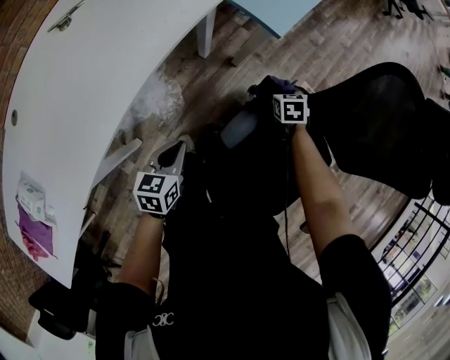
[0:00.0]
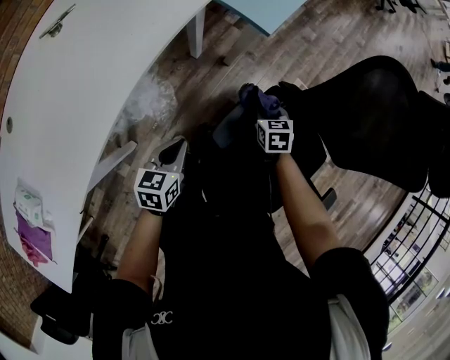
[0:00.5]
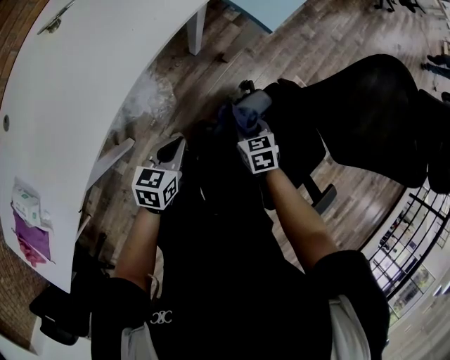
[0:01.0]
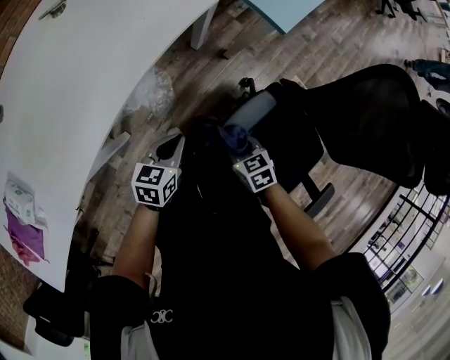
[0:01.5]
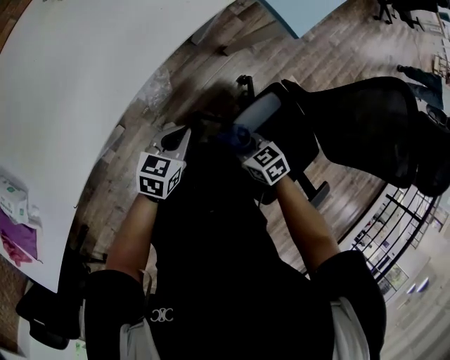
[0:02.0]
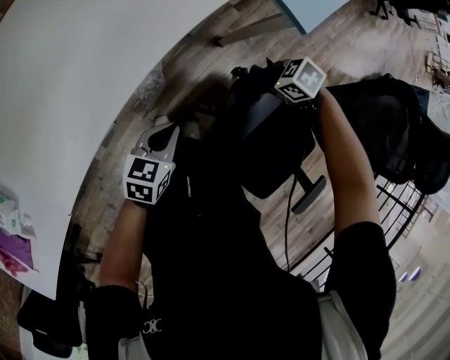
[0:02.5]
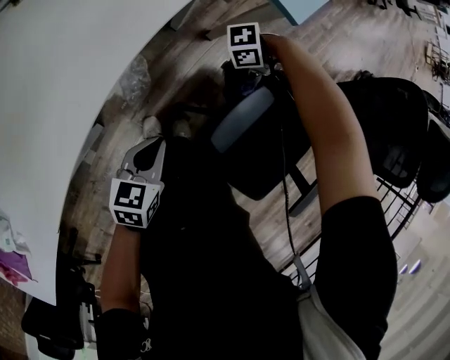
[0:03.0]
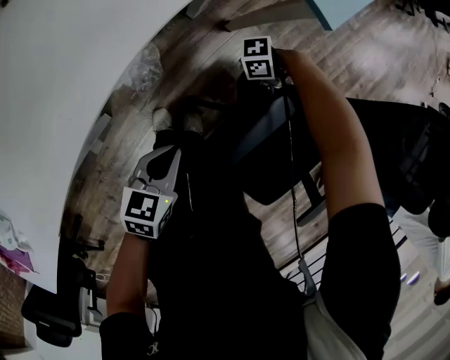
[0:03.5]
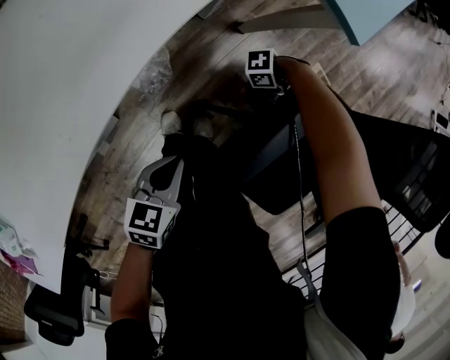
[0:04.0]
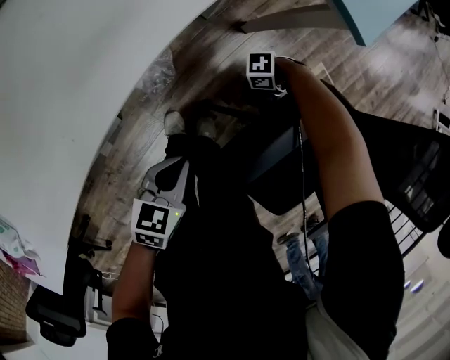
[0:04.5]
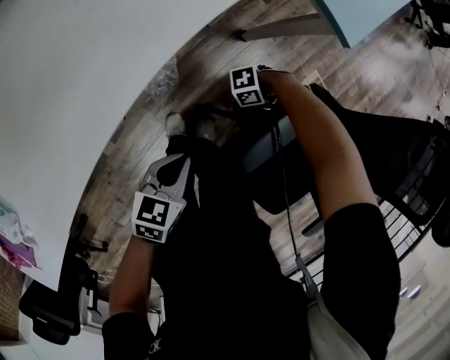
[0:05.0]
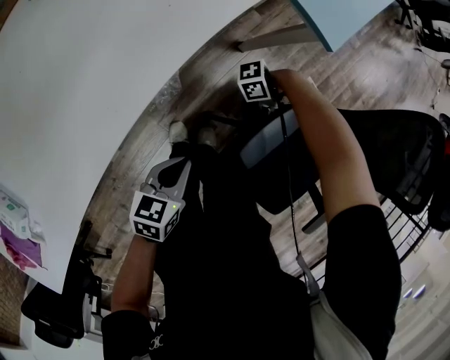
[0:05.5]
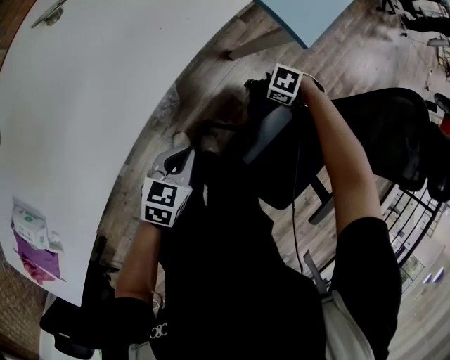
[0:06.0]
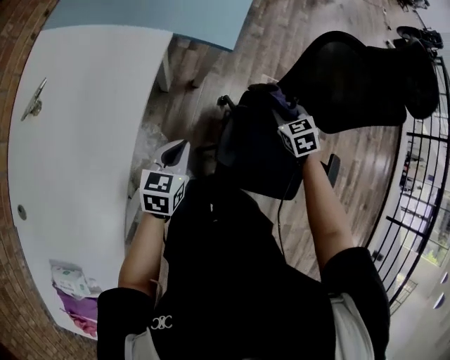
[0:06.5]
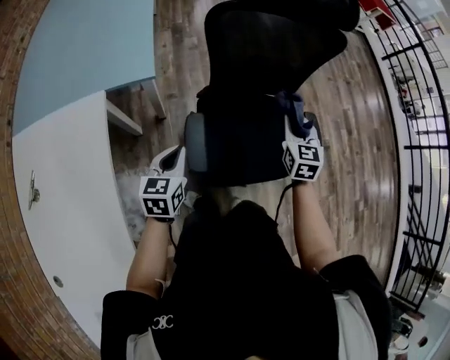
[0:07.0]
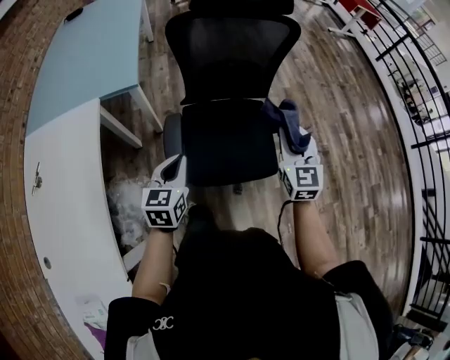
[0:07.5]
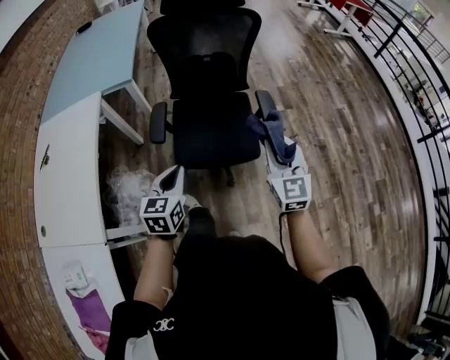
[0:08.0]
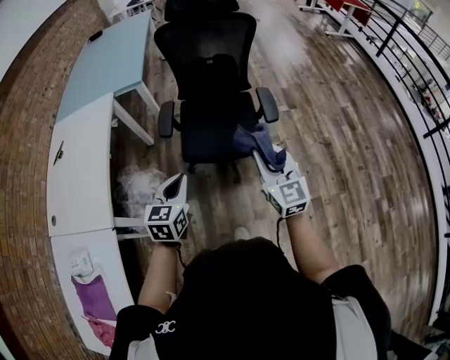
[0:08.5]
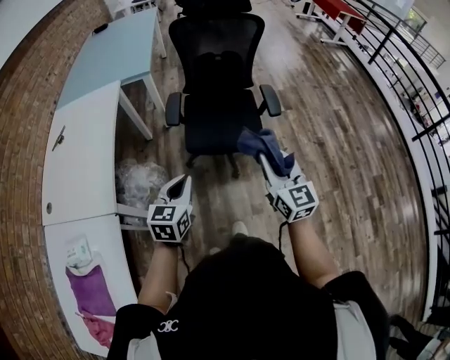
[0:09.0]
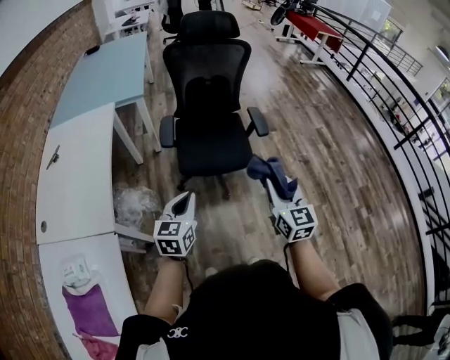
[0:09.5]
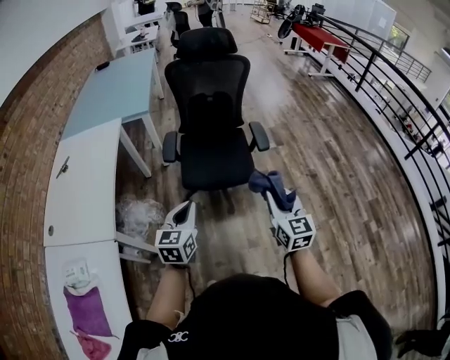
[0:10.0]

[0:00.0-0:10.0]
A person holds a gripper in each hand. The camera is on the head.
0:00.0 to 0:02.0: The right gripper changes place by about 30 cm, and rotates approximately 40 degrees.
0:02.0 to 0:04.0: The right gripper heads downward, covering about 25 cm, and changes its angle by about 80 degrees; the left gripper moves downward, roughly 10 cm.
0:04.0 to 0:06.0: The right gripper goes about 15 cm upward, and angles its fingers downward, by some 30 degrees, while the left gripper moves upward, roughly 10 cm.
0:06.0 to 0:08.0: The right gripper moves some 70 cm, and angles its fingers upward, by approximately 60 degrees. Meanwhile the left gripper changes place by about 35 cm, and swivels some 30 degrees.
0:08.0 to 0:10.0: The two grippers go roughly 20 cm backward.

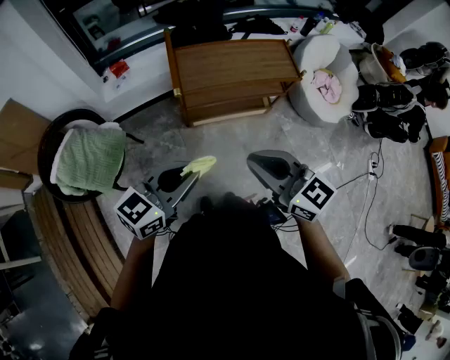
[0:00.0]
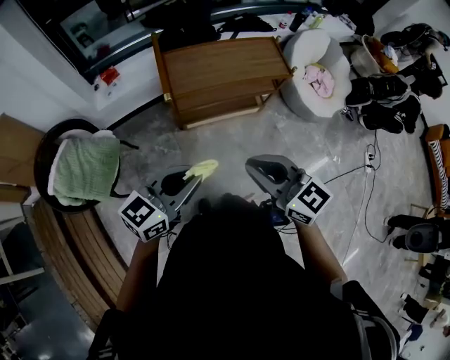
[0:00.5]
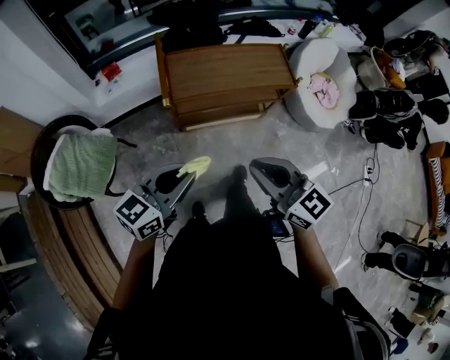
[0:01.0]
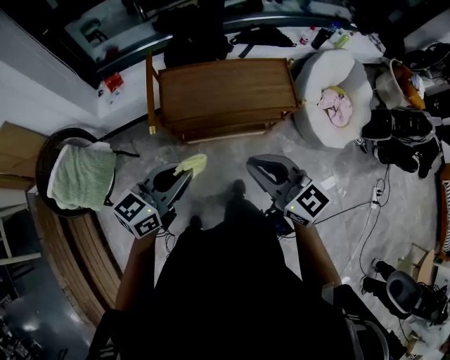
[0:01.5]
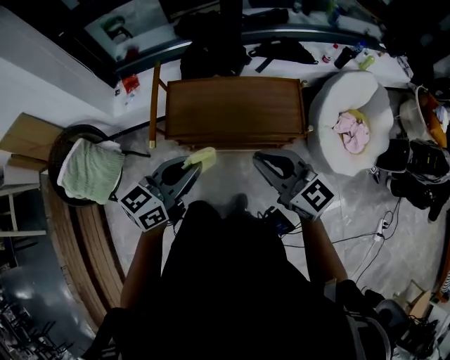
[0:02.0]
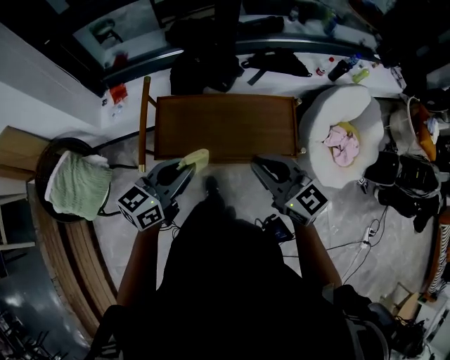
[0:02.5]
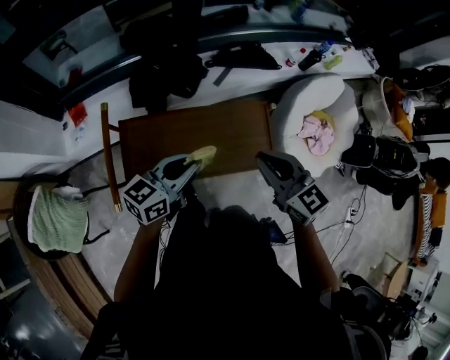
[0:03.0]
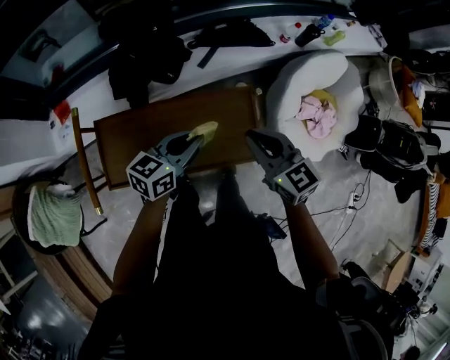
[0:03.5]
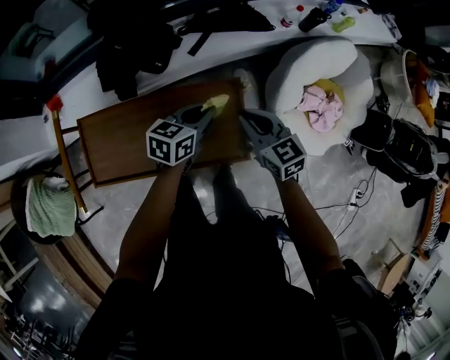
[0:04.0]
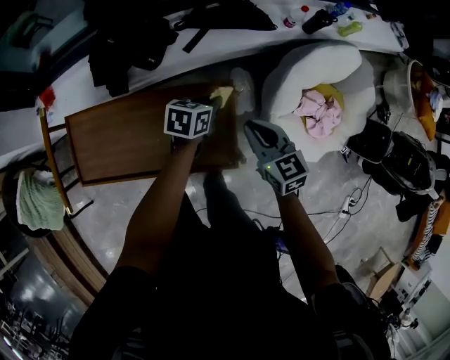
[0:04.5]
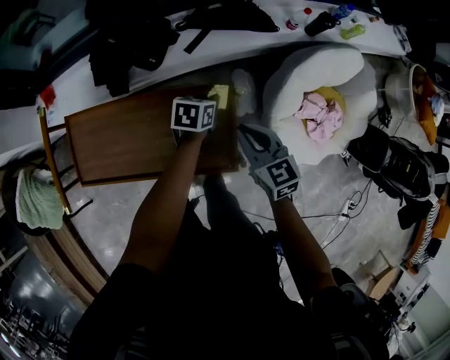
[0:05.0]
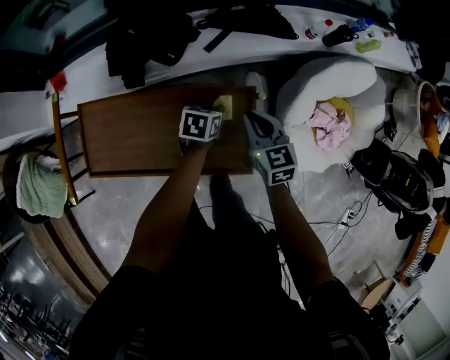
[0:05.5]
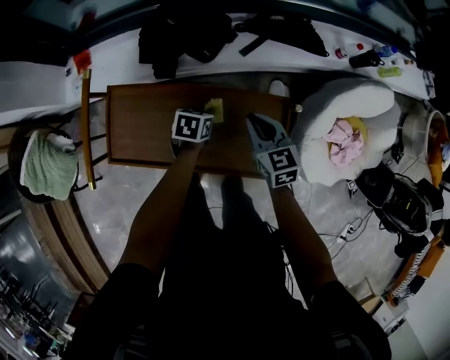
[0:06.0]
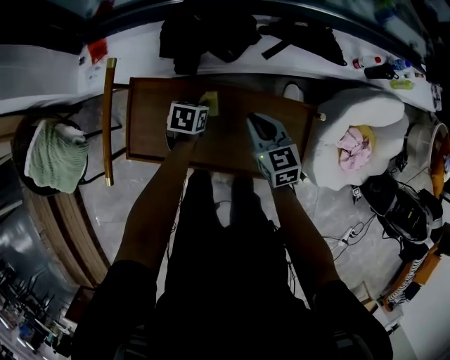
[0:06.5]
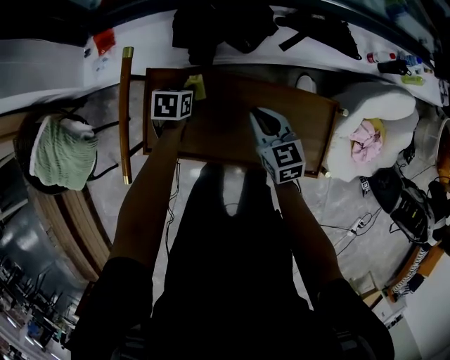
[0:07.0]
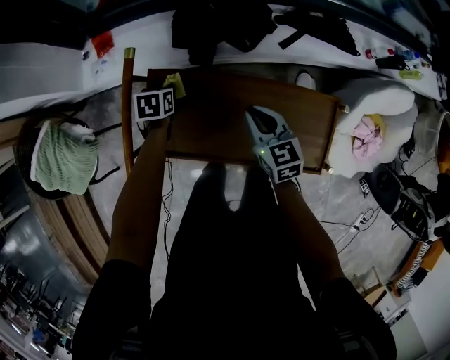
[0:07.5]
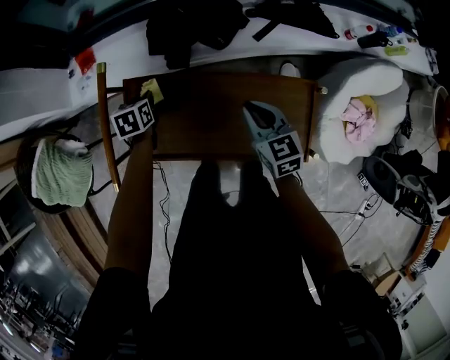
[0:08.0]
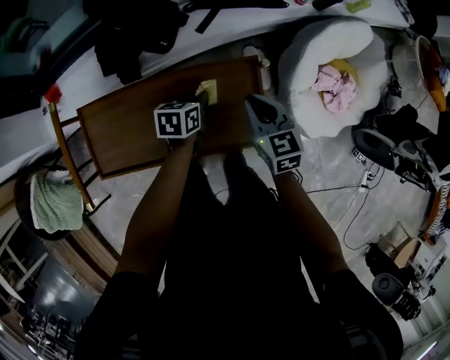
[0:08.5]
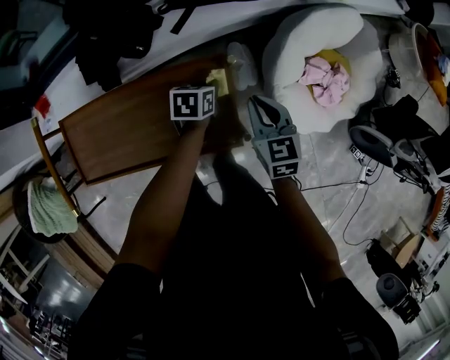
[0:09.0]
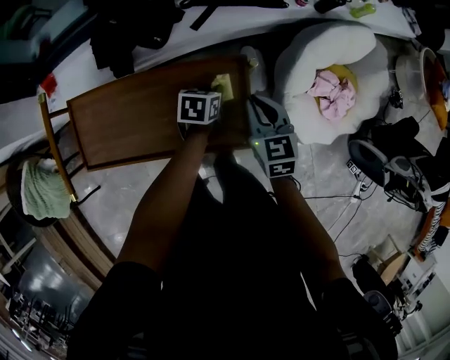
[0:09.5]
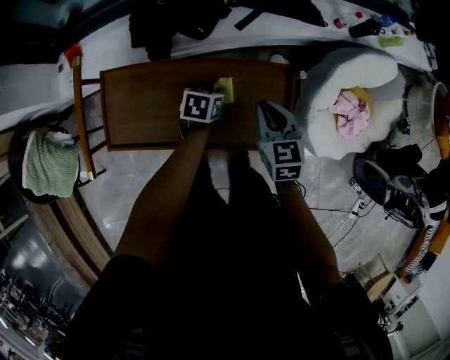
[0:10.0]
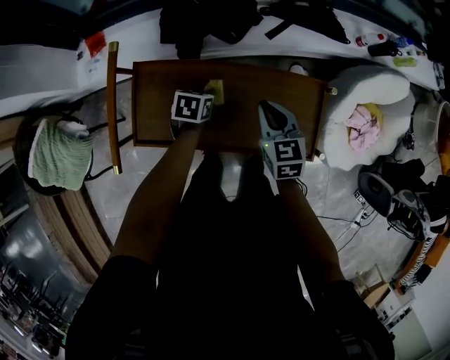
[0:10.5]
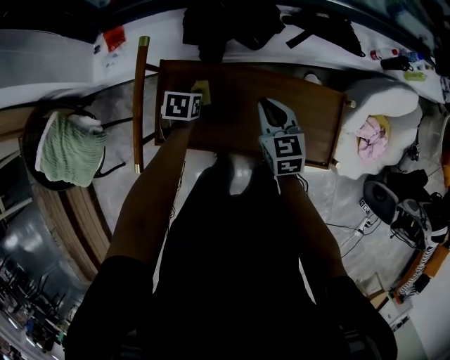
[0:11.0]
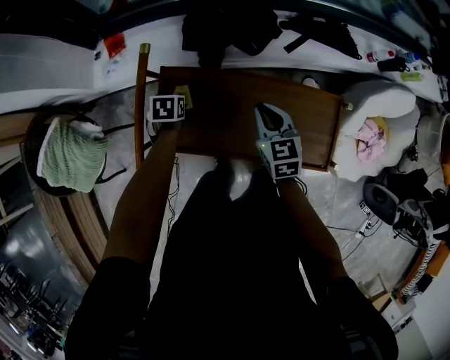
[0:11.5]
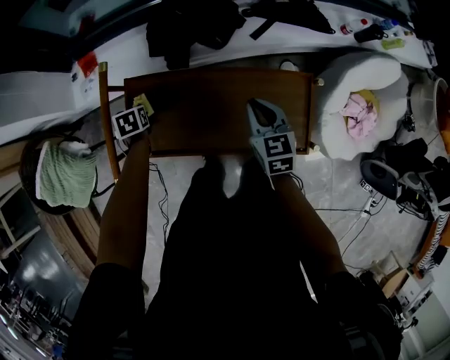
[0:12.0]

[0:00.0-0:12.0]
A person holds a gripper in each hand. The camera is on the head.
0:00.0 to 0:02.0: Both grippers travel together forward and to the right, some 35 cm.
0:02.0 to 0:04.0: The two grippers go some 50 cm forward, to the right and downward. The right gripper rotates about 30 degrees. The left gripper rotates roughly 20 degrees.
0:04.0 to 0:06.0: The left gripper moves downward and to the left, some 20 cm, and swivels about 30 degrees. Meanwhile the right gripper heads to the left and downward, covering about 15 cm.
0:06.0 to 0:08.0: The left gripper travels to the left by some 30 cm, and swivels about 20 degrees. Meanwhile the right gripper is displaced to the left by roughly 10 cm.
0:08.0 to 0:10.0: The left gripper swivels some 30 degrees.
0:10.0 to 0:12.0: The left gripper shifts by approximately 35 cm, and turns by about 30 degrees.

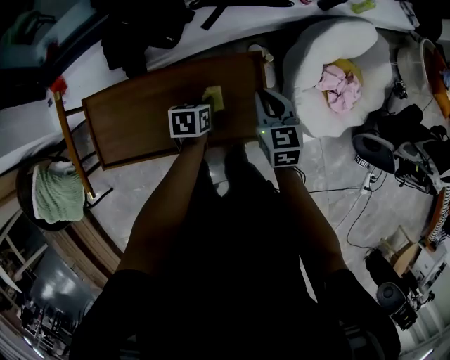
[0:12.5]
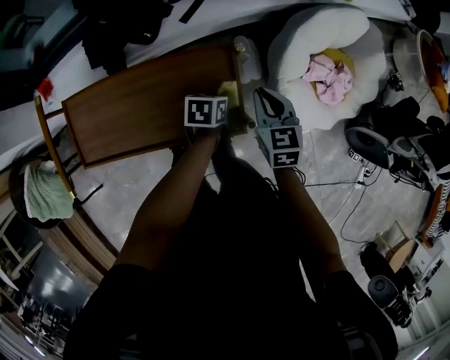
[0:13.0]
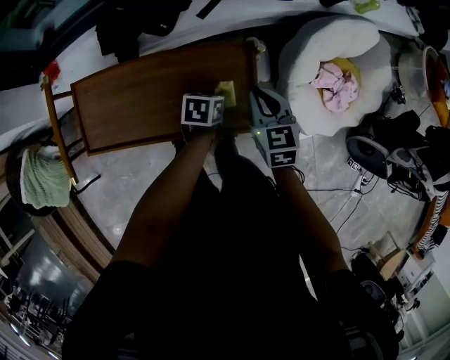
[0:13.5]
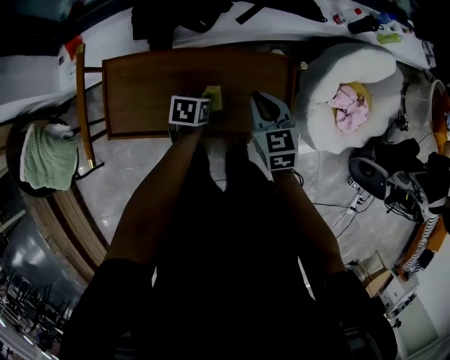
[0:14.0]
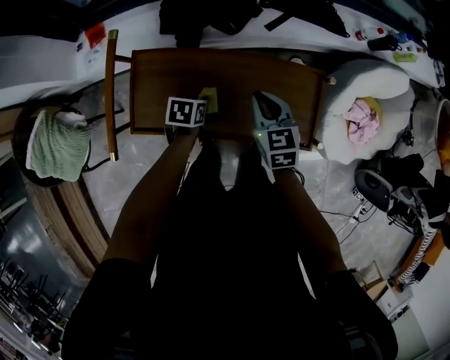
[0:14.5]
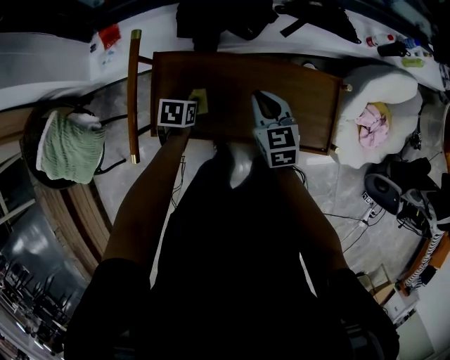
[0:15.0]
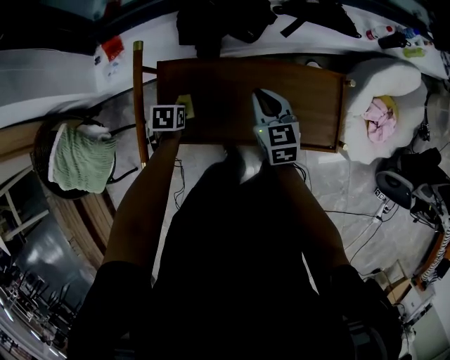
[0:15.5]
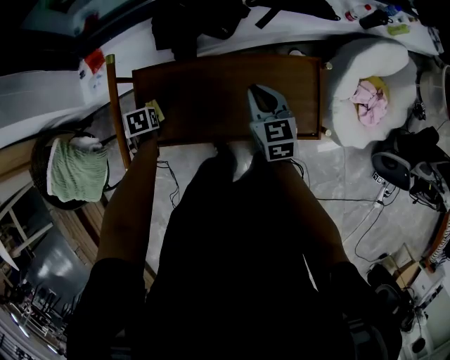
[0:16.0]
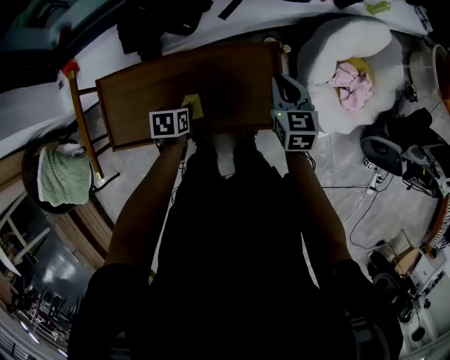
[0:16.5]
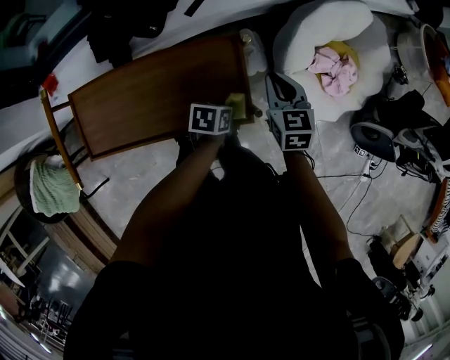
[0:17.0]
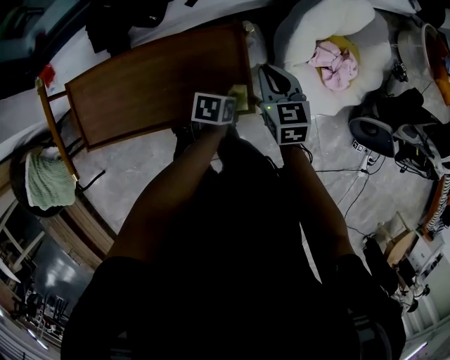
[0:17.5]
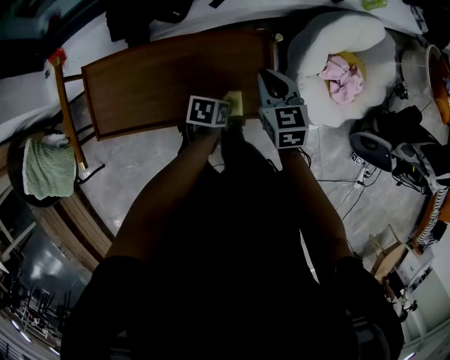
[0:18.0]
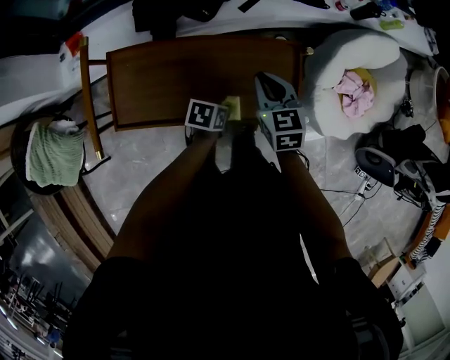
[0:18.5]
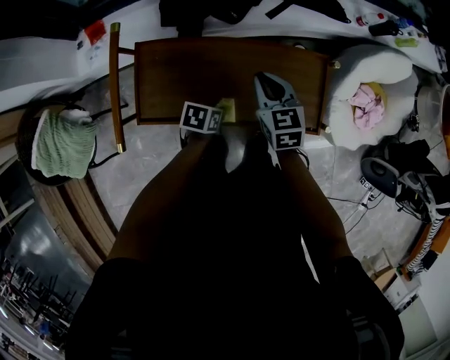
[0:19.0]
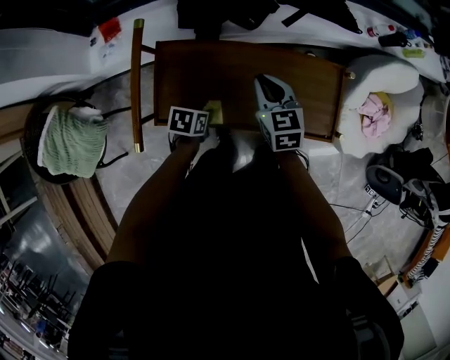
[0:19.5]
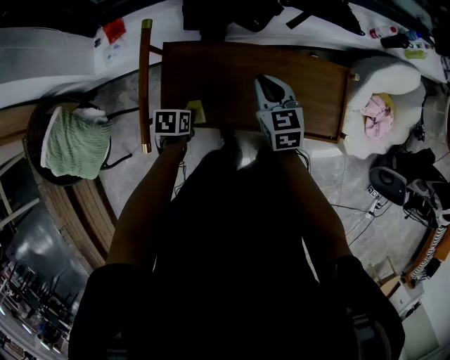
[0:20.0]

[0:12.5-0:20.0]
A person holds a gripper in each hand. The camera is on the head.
0:12.5 to 0:14.5: The right gripper heads to the left, covering roughly 20 cm; the left gripper is displaced to the left and backward by approximately 20 cm.
0:14.5 to 0:16.5: The right gripper ends up approximately 20 cm from where it was.
0:16.5 to 0:18.0: The left gripper shifts about 15 cm to the right, while the right gripper travels to the right and back again, roughly 10 cm each way.
0:18.0 to 0:20.0: Both grippers move to the left, roughly 30 cm.
